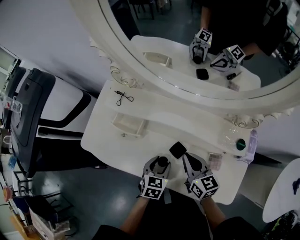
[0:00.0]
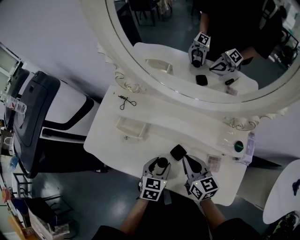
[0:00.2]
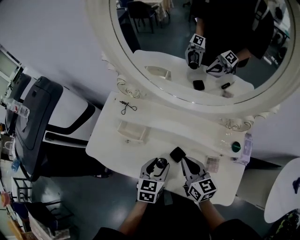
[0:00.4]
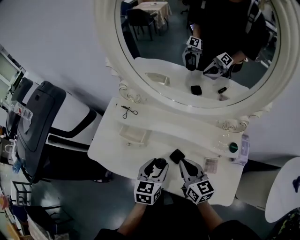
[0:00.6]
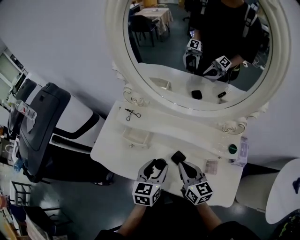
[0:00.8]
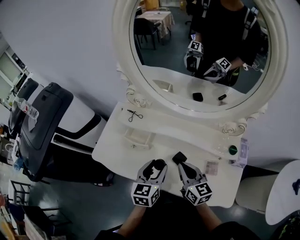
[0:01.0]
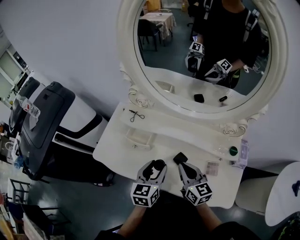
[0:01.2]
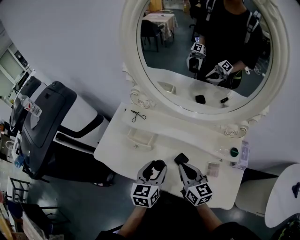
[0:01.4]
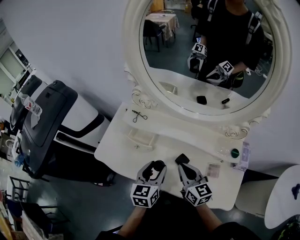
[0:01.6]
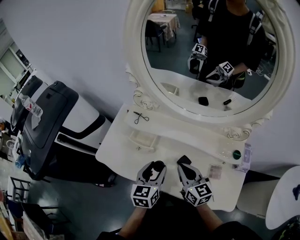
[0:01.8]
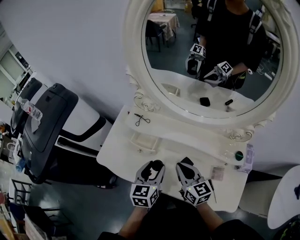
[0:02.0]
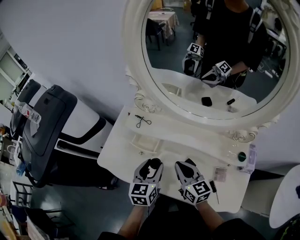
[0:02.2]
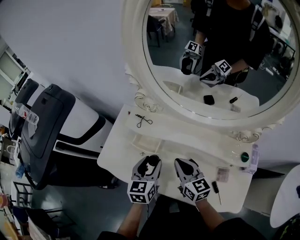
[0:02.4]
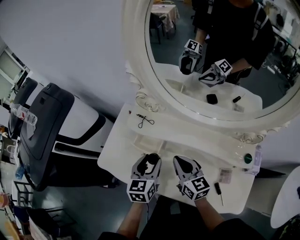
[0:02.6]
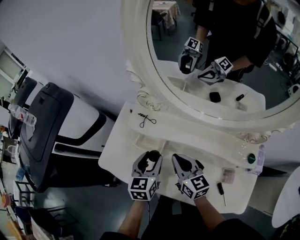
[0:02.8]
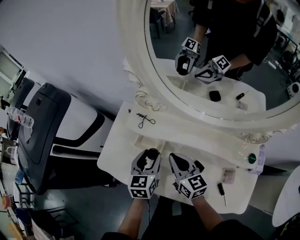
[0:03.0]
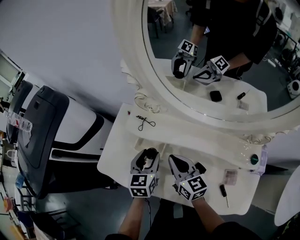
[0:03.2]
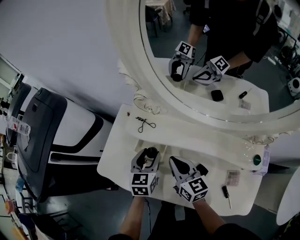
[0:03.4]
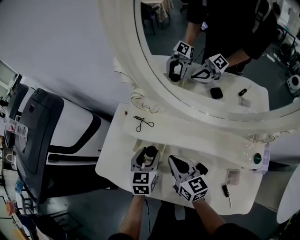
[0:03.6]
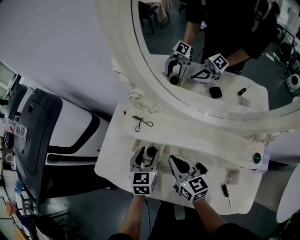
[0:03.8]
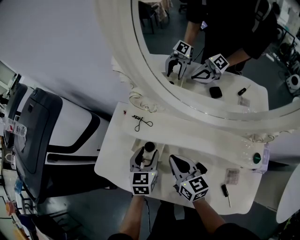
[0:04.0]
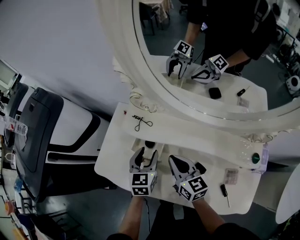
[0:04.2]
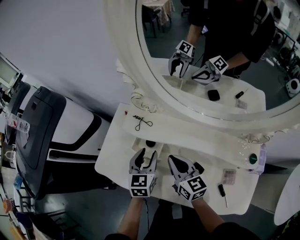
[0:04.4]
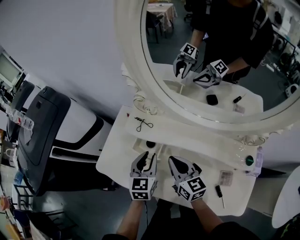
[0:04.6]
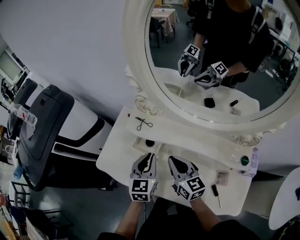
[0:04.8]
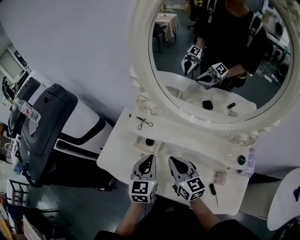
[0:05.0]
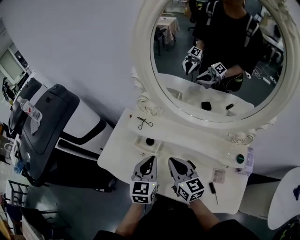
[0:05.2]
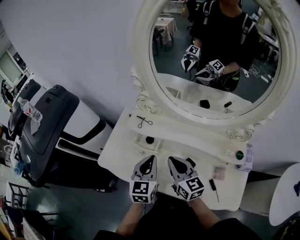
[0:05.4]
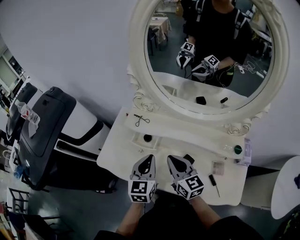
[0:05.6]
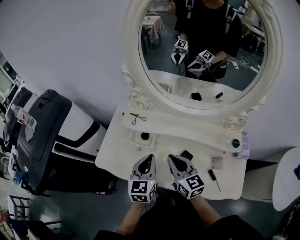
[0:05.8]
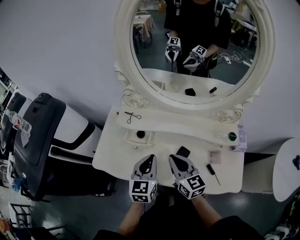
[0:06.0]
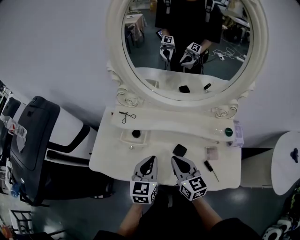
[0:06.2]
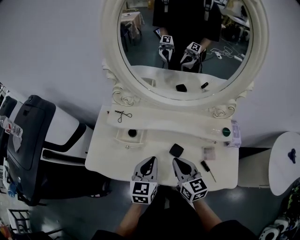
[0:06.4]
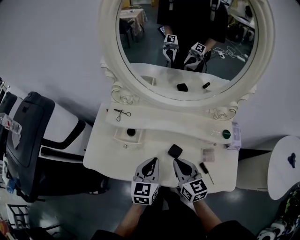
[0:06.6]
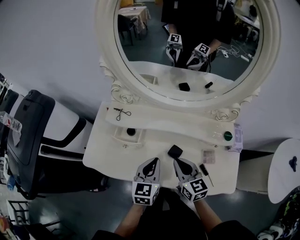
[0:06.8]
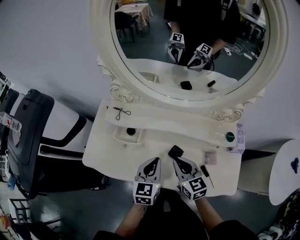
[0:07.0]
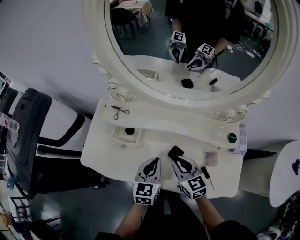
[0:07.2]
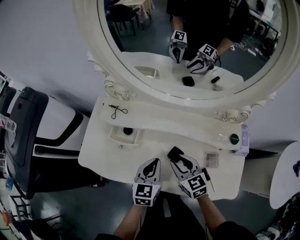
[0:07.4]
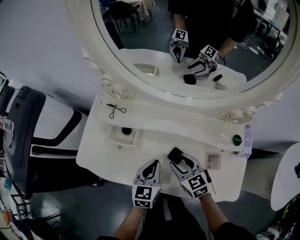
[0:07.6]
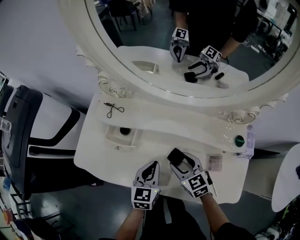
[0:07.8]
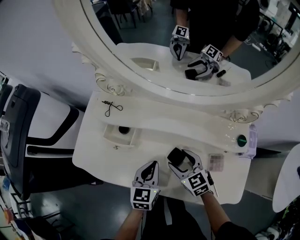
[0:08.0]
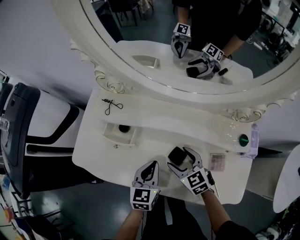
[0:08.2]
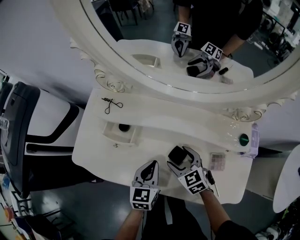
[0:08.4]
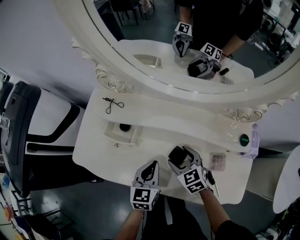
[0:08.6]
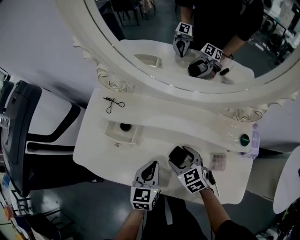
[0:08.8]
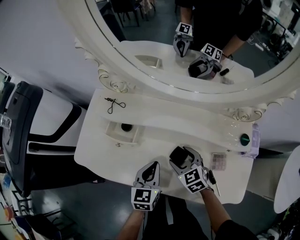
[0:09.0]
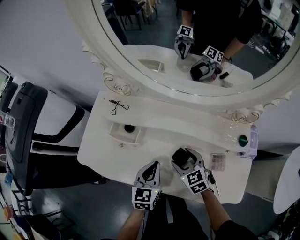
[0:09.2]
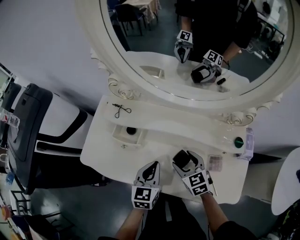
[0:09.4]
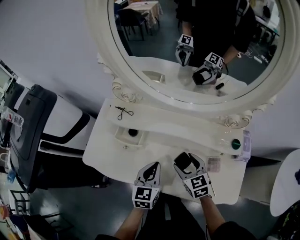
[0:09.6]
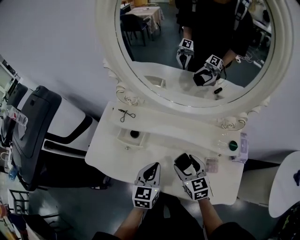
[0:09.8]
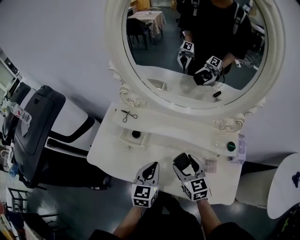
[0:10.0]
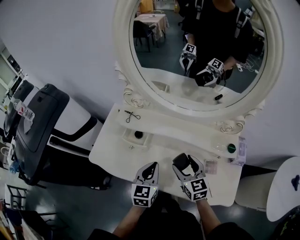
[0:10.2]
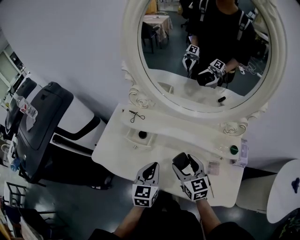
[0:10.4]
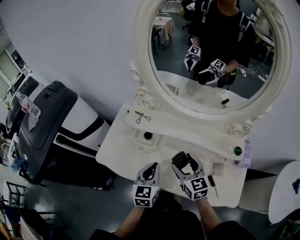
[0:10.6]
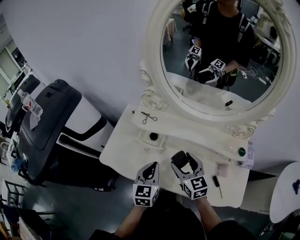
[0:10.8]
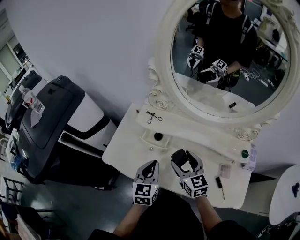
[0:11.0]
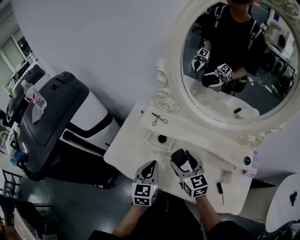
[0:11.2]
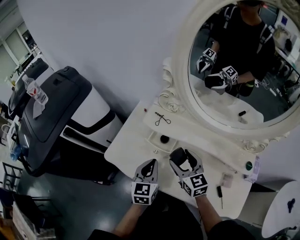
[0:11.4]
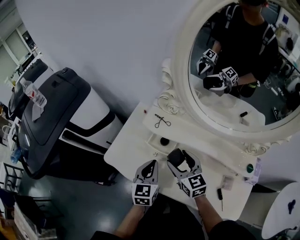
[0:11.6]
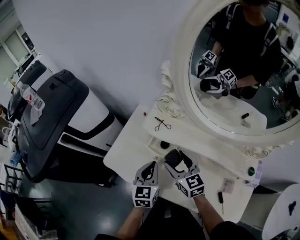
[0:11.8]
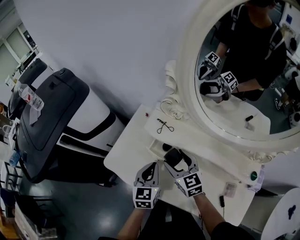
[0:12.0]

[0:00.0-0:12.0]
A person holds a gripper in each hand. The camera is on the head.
0.0 to 1.6 s: The left gripper moves upward, some 15 cm, and turns by some 30 degrees. The right gripper heads upward and to the left, covering about 10 cm.
1.6 to 3.0 s: Both grippers move forward and to the left, roughly 15 cm.
4.4 to 6.0 s: The two grippers go roughly 15 cm backward and upward. The left gripper closes.
6.0 to 7.6 s: The grippers both shift downward and to the right by approximately 15 cm. The right gripper turns by some 20 degrees, and opens.
7.6 to 9.0 s: The right gripper goes about 5 cm downward, and opens.
9.0 to 10.4 s: Both grippers move upward, roughly 15 cm. The right gripper changes its angle by about 20 degrees.
10.4 to 12.0 s: Both grippers move to the left and forward, some 20 cm.

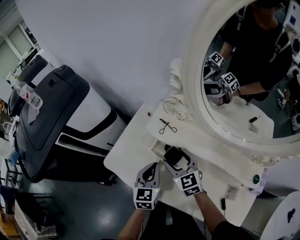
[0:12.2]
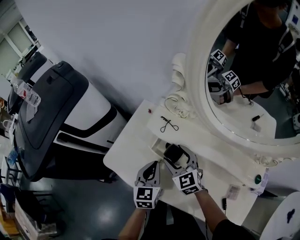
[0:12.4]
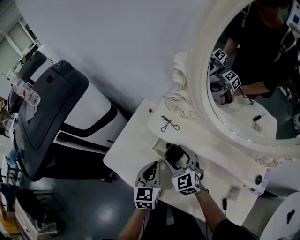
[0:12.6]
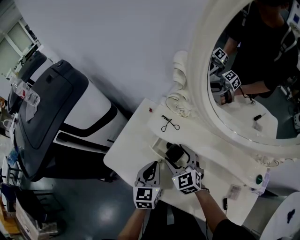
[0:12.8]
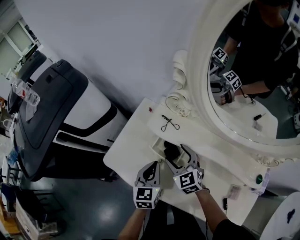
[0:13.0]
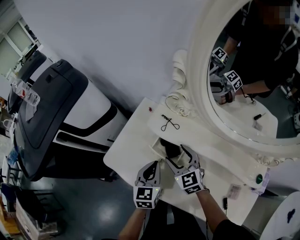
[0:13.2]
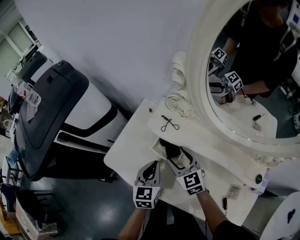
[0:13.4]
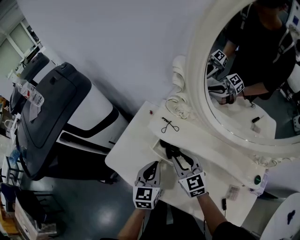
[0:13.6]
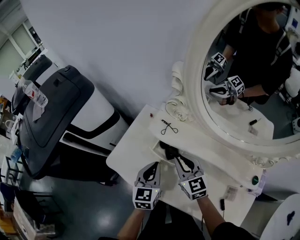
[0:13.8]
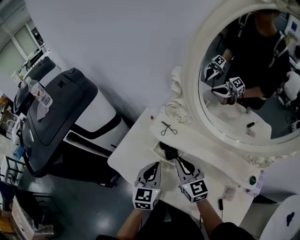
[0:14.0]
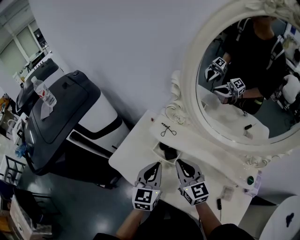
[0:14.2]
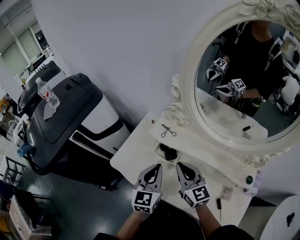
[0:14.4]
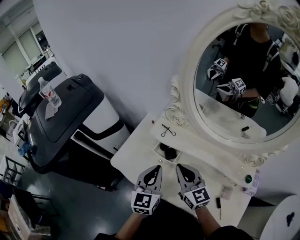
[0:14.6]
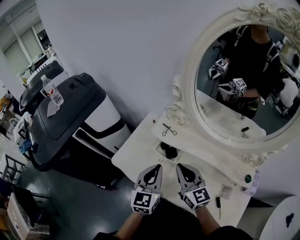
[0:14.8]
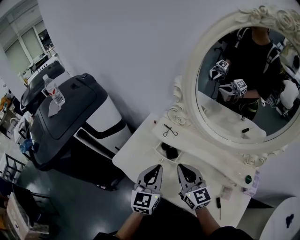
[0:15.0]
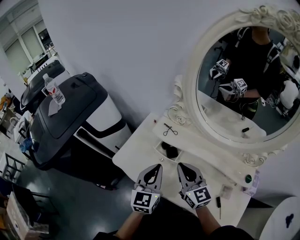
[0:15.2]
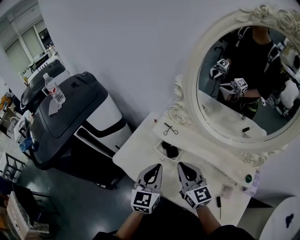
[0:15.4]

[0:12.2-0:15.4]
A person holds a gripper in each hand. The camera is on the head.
12.2 to 13.8 s: The right gripper closes.
13.8 to 15.4 s: Both grippers travel together upward and backward, approximately 15 cm.

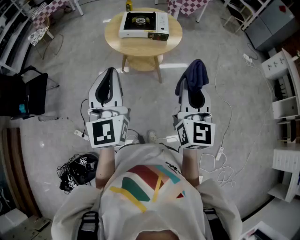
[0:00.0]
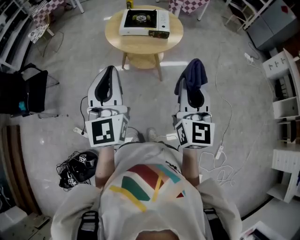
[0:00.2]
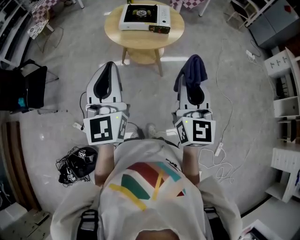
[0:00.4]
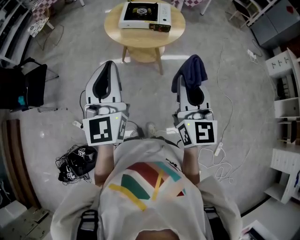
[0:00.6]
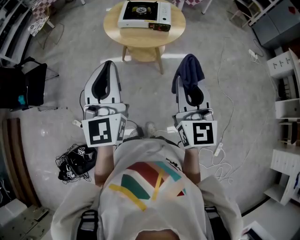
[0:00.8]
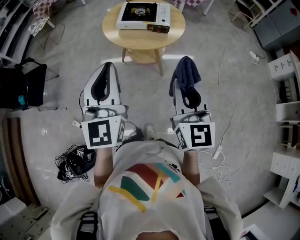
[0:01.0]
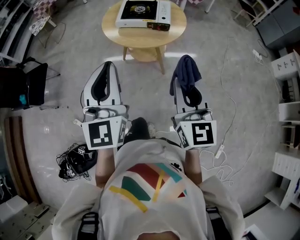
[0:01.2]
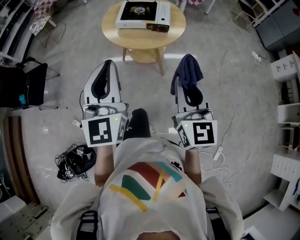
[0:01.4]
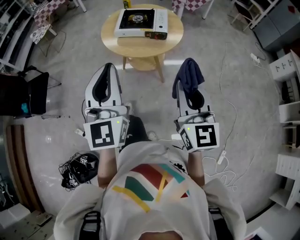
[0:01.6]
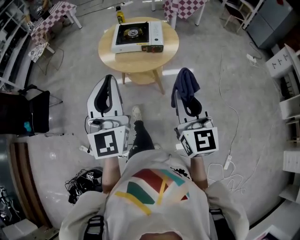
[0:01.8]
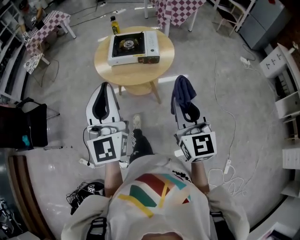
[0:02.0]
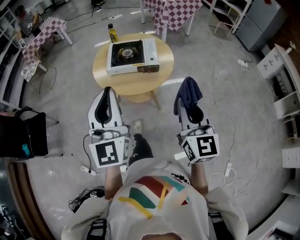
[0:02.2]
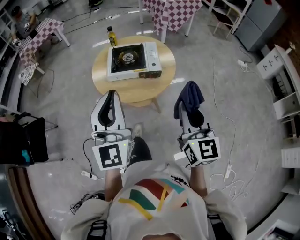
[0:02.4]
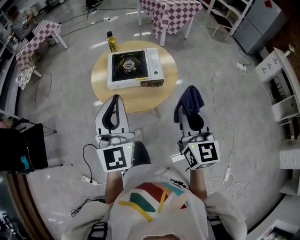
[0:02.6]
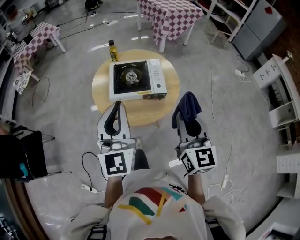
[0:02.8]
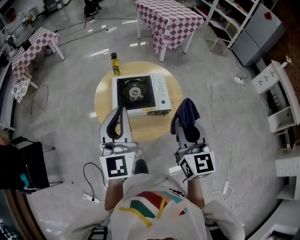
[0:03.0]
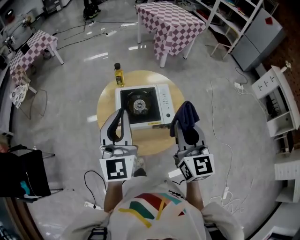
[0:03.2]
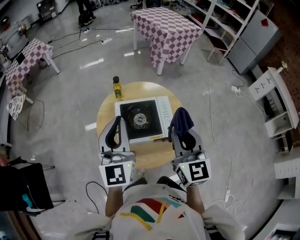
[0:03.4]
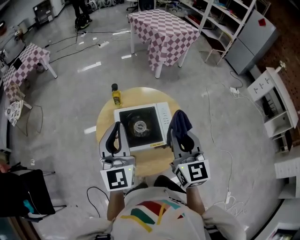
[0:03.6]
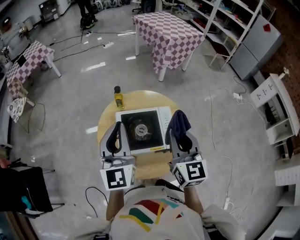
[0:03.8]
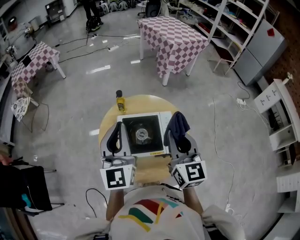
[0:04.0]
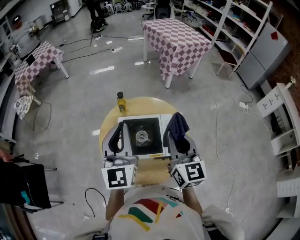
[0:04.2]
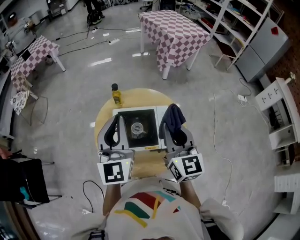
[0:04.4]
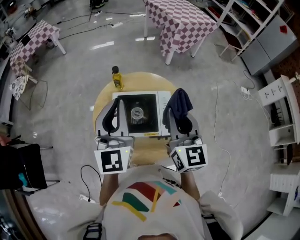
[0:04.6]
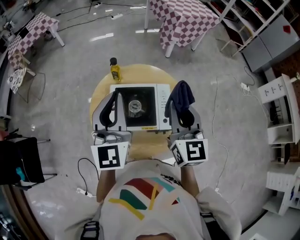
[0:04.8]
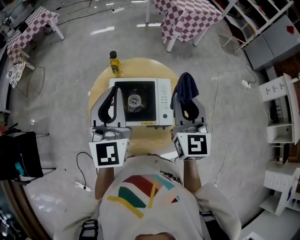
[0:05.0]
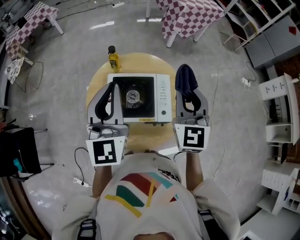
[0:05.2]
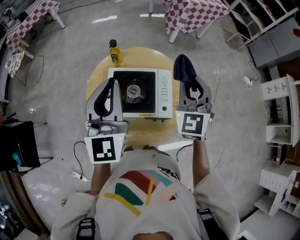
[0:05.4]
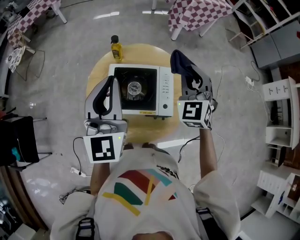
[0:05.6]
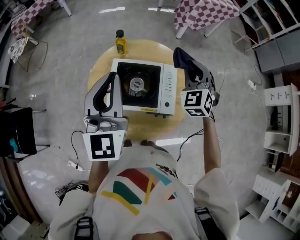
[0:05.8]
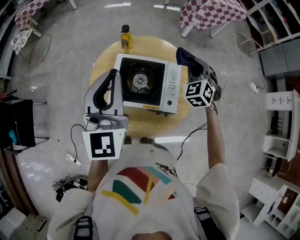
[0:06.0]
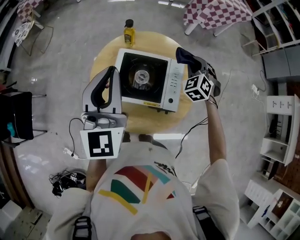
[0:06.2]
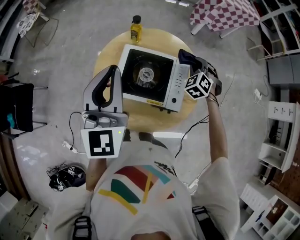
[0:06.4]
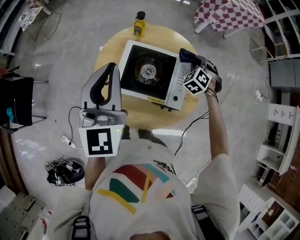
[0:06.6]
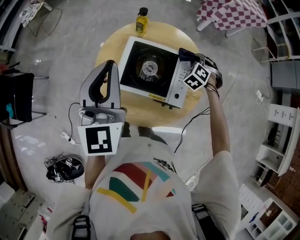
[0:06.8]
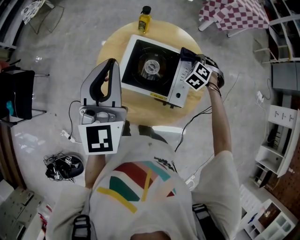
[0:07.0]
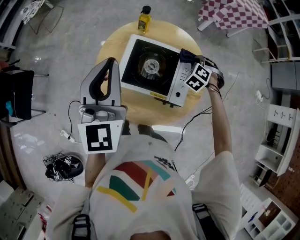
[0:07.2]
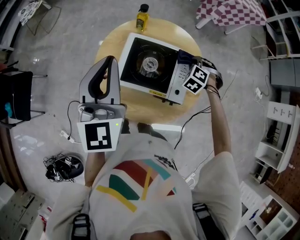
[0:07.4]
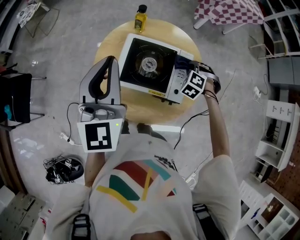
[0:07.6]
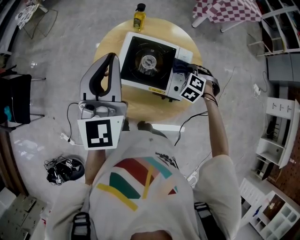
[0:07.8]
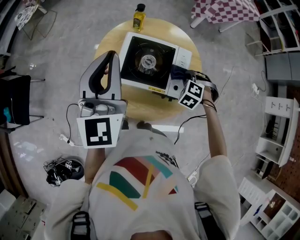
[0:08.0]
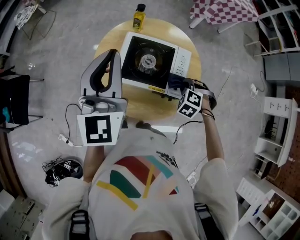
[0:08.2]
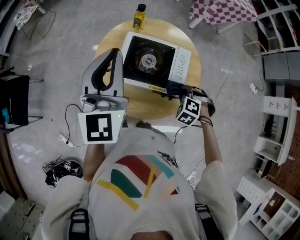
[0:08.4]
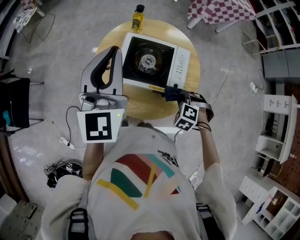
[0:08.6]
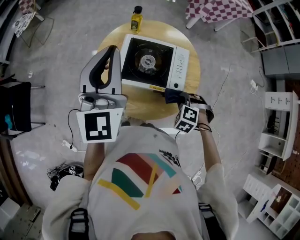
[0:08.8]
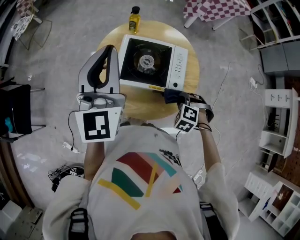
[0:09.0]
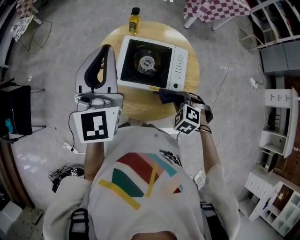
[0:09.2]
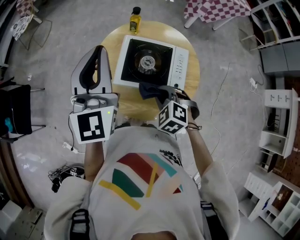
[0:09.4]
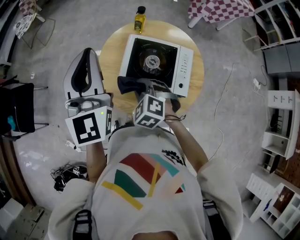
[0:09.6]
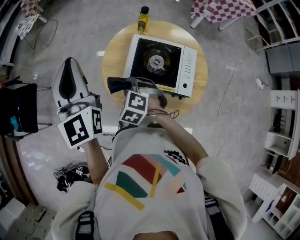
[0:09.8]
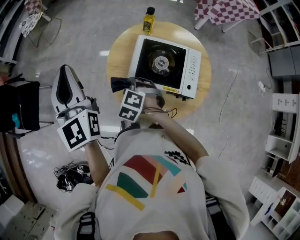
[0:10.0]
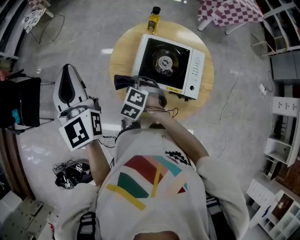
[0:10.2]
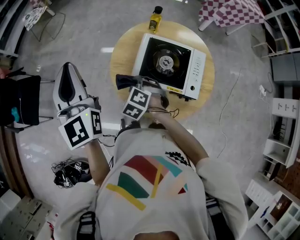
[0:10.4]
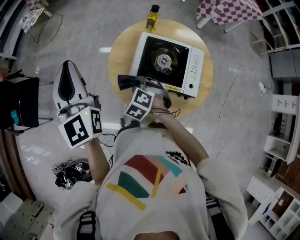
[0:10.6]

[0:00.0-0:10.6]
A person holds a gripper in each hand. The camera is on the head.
0.0 to 1.6 s: The left gripper heads to the right, covering approximately 5 cm. Meanwhile the right gripper ends up some 5 cm from where it was.
1.6 to 3.0 s: The two grippers go approximately 30 cm forward.
3.0 to 4.6 s: The two grippers go some 20 cm forward.
4.6 to 6.0 s: The right gripper travels downward and forward by about 20 cm, and twists some 50 degrees counterclockwise, seen from behind.
6.0 to 7.6 s: The left gripper changes place by roughly 5 cm, while the right gripper heads downward, covering roughly 15 cm, and swivels roughly 40 degrees.
7.6 to 9.0 s: The right gripper shifts roughly 20 cm backward.
9.0 to 10.6 s: The left gripper changes place by roughly 20 cm, and swivels some 30 degrees. Meanwhile the right gripper moves approximately 30 cm.
